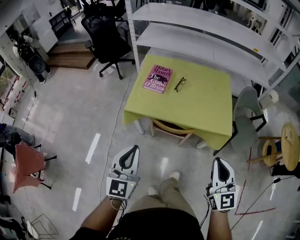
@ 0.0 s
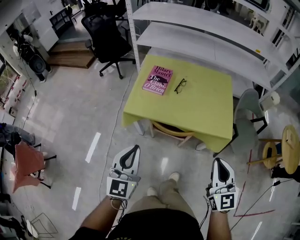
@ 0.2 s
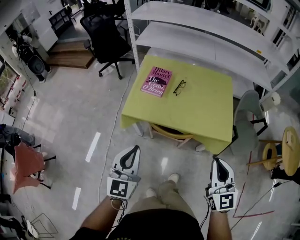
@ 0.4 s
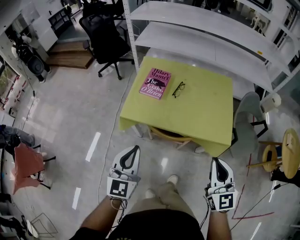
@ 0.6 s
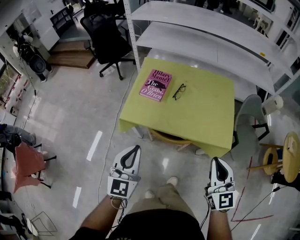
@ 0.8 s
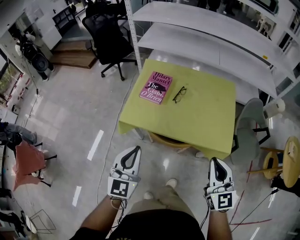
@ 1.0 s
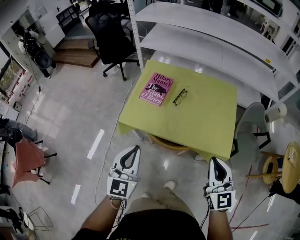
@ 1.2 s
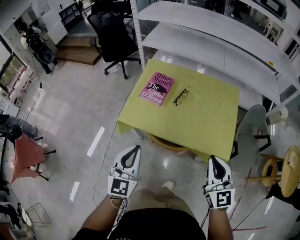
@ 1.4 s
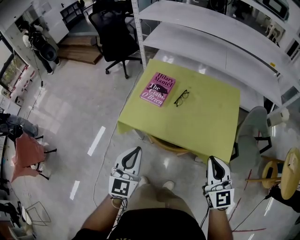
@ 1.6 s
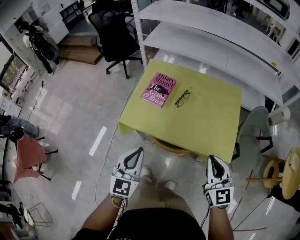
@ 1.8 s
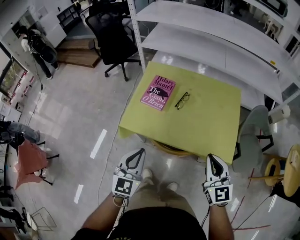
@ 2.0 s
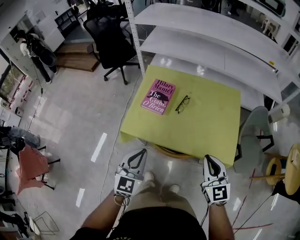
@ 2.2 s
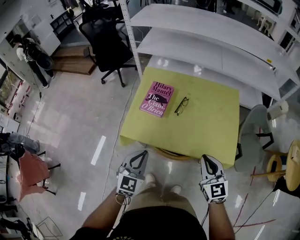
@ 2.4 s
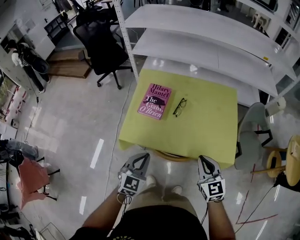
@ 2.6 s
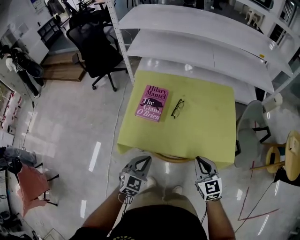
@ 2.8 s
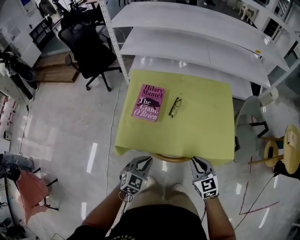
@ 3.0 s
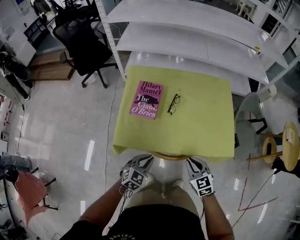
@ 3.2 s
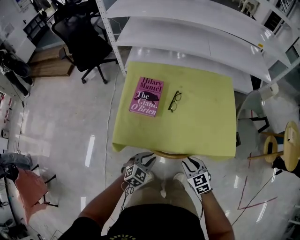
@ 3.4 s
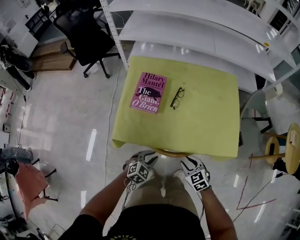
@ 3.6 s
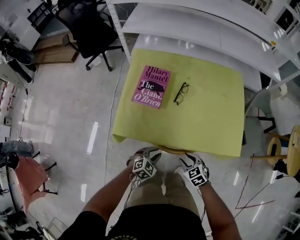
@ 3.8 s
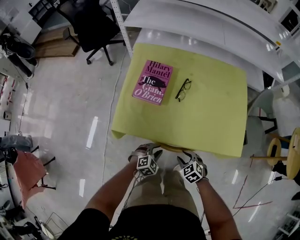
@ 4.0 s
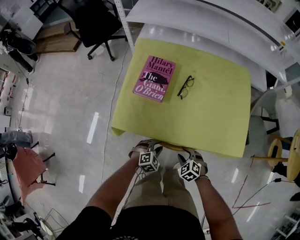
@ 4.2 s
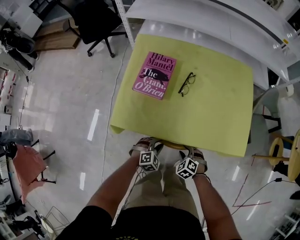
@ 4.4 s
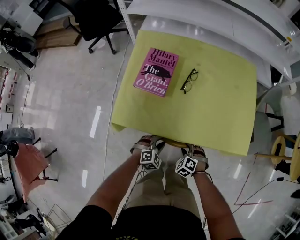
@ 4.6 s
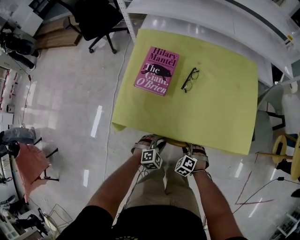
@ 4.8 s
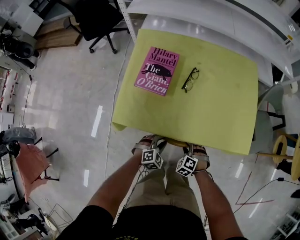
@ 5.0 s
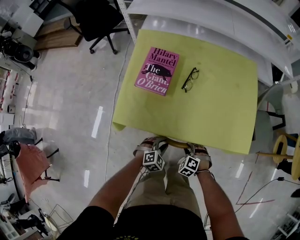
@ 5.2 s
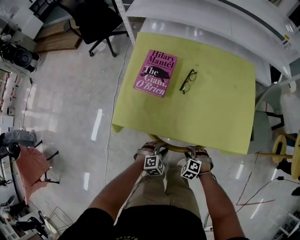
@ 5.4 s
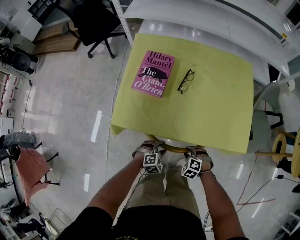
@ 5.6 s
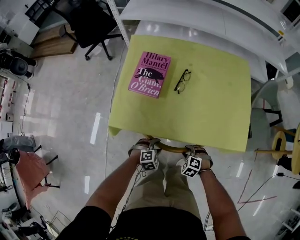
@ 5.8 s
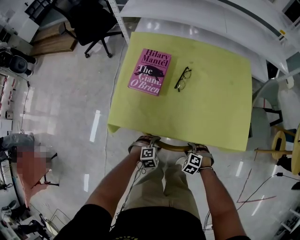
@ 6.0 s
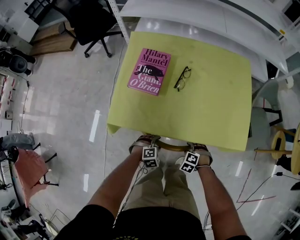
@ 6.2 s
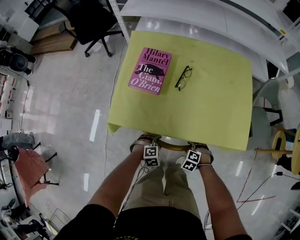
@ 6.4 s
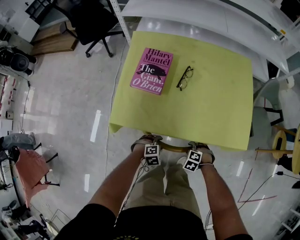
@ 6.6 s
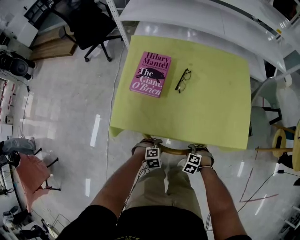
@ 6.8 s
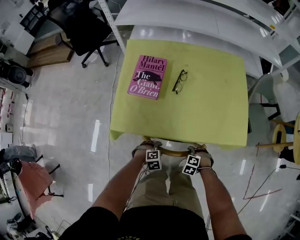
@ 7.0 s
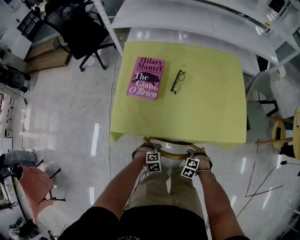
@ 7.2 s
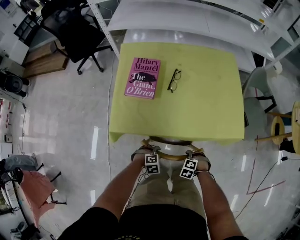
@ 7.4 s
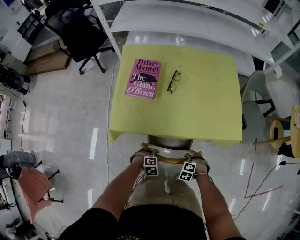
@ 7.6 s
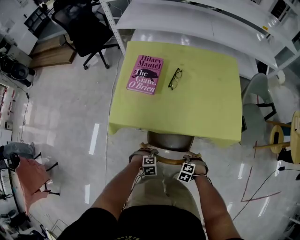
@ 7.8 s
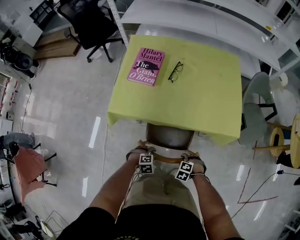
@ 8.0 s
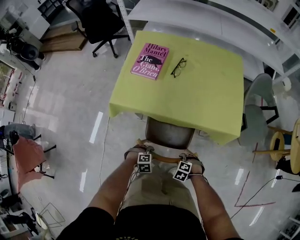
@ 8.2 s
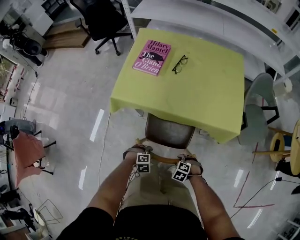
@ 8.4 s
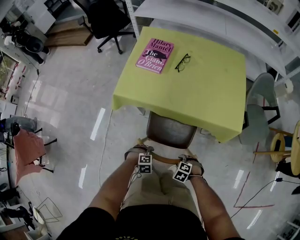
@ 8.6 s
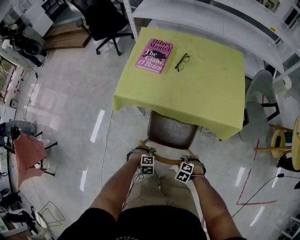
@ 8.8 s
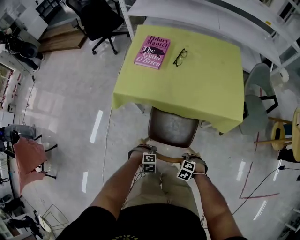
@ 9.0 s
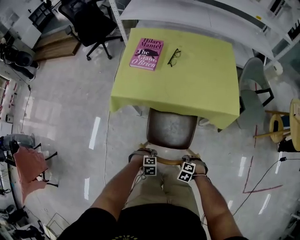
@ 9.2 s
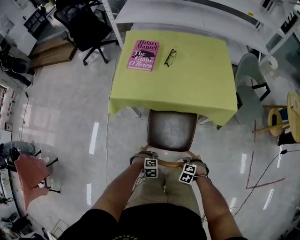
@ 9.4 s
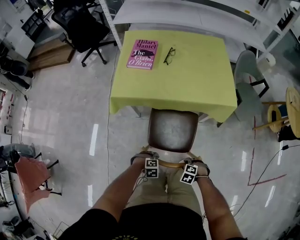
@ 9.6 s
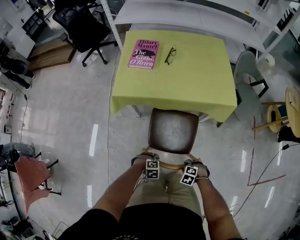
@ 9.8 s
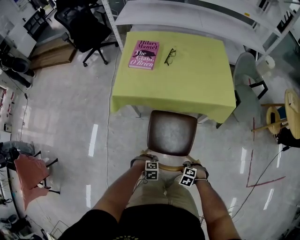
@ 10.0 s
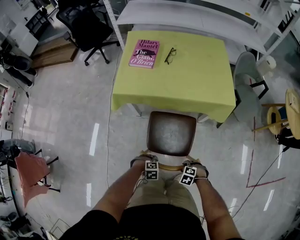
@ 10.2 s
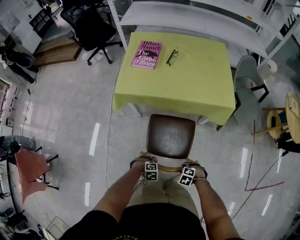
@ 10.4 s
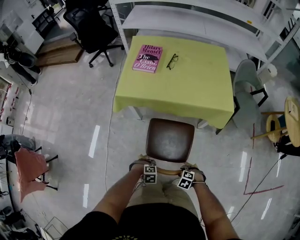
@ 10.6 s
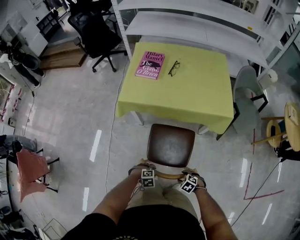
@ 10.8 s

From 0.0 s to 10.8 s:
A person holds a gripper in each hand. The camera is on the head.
From 0.0 s to 1.6 s: The left gripper travels forward and to the right by approximately 15 cm; the right gripper heads forward, covering about 20 cm.
From 1.6 s to 3.0 s: The left gripper goes about 20 cm downward and forward, and turns by some 40 degrees. Meanwhile the right gripper moves downward, to the left and forward, some 20 cm, and turns by approximately 20 degrees.
From 3.0 s to 4.6 s: Both grippers move downward, about 25 cm. The right gripper tilts its fingers approximately 40 degrees downward, and opens its fingers; the left gripper rotates about 30 degrees, and opens its fingers.
From 4.6 s to 6.2 s: The left gripper shifts by about 5 cm, and opens up.
From 6.2 s to 7.8 s: The left gripper changes place by about 10 cm; the right gripper changes place by roughly 10 cm.
From 7.8 s to 9.2 s: The left gripper moves some 15 cm. Meanwhile the right gripper shifts by roughly 15 cm.
From 9.2 s to 10.8 s: The left gripper ends up approximately 10 cm from where it was. Meanwhile the right gripper changes place by about 10 cm.

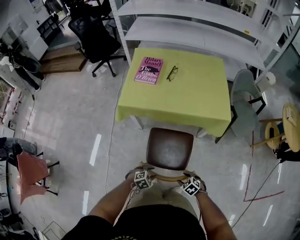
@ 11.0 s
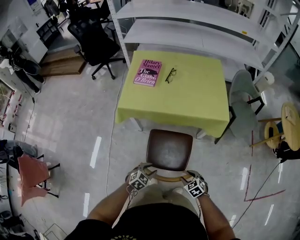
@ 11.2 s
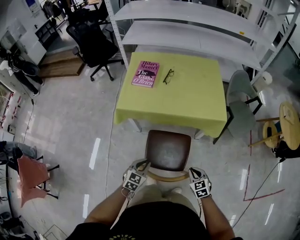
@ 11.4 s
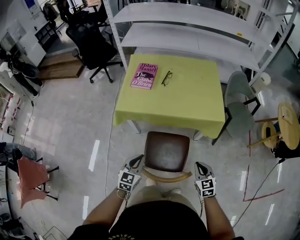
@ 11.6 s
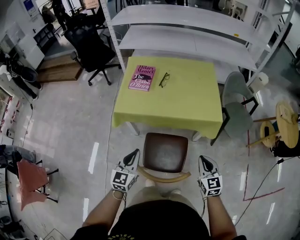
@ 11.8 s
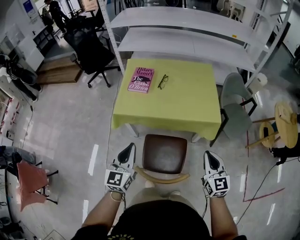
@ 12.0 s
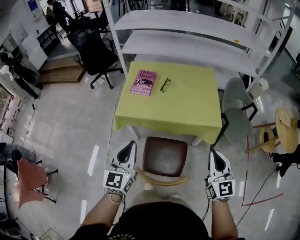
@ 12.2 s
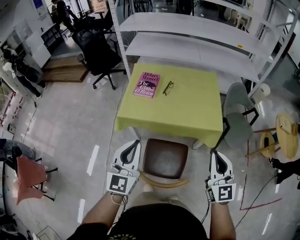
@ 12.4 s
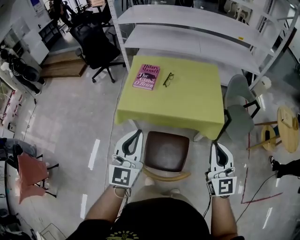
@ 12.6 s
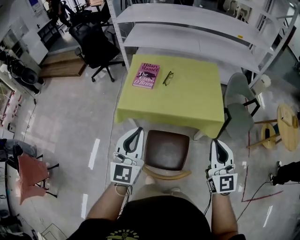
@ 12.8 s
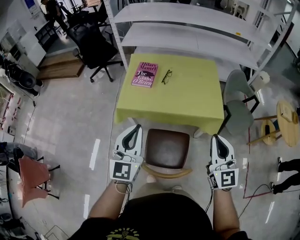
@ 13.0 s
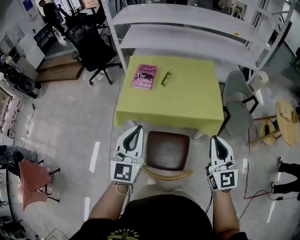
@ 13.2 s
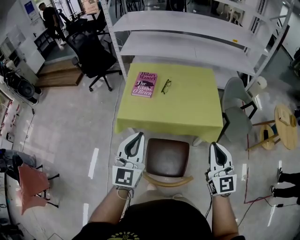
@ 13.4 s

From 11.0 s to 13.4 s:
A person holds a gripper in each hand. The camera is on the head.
From 11.0 s to 12.2 s: The grippers both shift upward by roughly 40 cm. The left gripper points its fingers approximately 60 degrees further upward, and closes. Meanwhile the right gripper angles its fingers upward, by roughly 60 degrees, and closes.
From 12.2 s to 13.4 s: The left gripper ends up about 5 cm from where it was, while the right gripper changes place by about 5 cm.

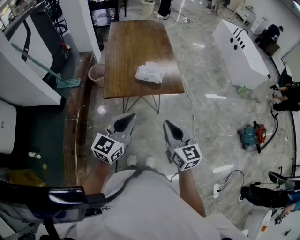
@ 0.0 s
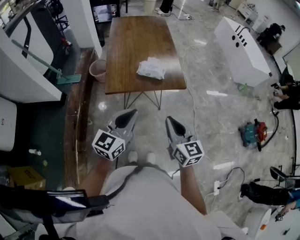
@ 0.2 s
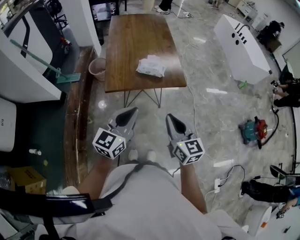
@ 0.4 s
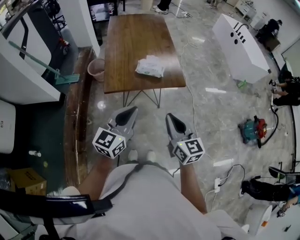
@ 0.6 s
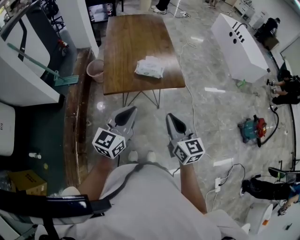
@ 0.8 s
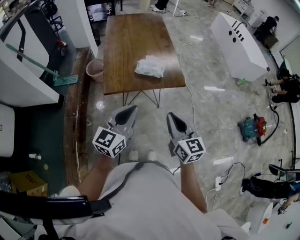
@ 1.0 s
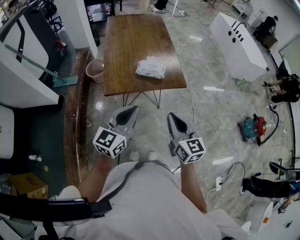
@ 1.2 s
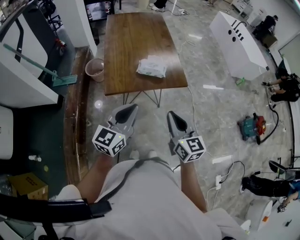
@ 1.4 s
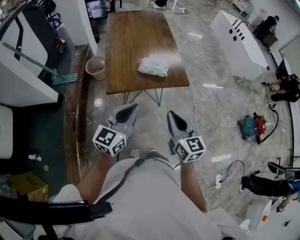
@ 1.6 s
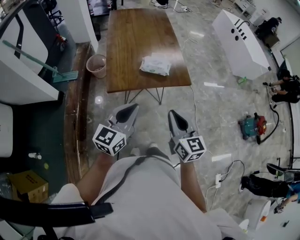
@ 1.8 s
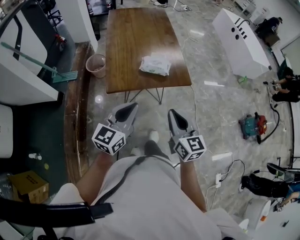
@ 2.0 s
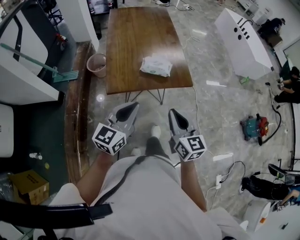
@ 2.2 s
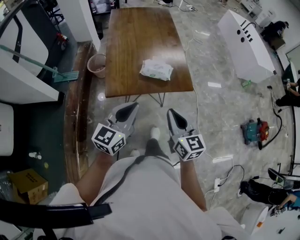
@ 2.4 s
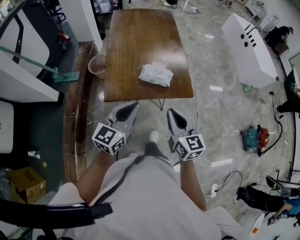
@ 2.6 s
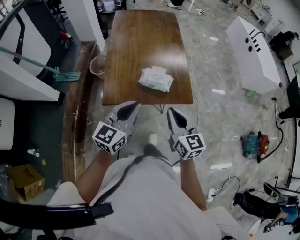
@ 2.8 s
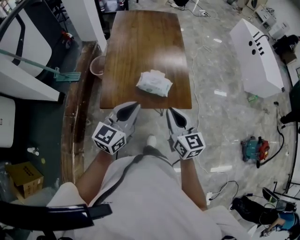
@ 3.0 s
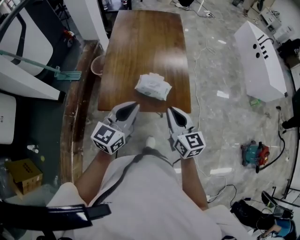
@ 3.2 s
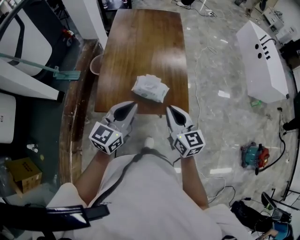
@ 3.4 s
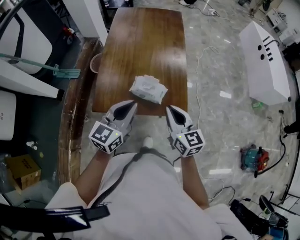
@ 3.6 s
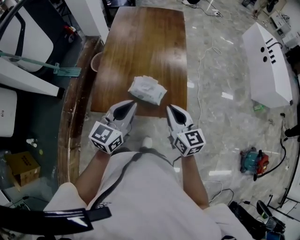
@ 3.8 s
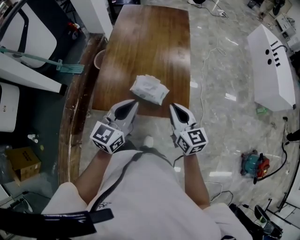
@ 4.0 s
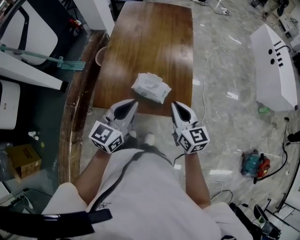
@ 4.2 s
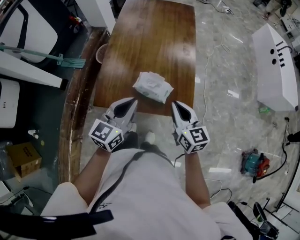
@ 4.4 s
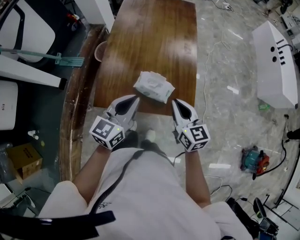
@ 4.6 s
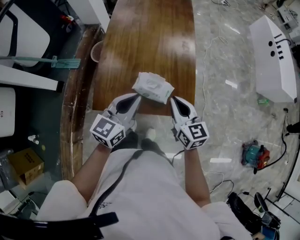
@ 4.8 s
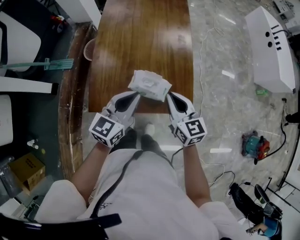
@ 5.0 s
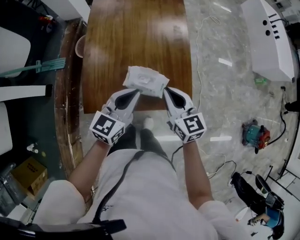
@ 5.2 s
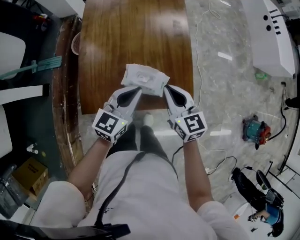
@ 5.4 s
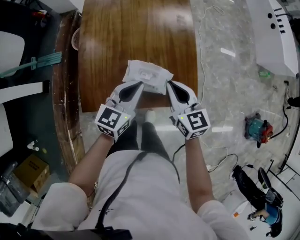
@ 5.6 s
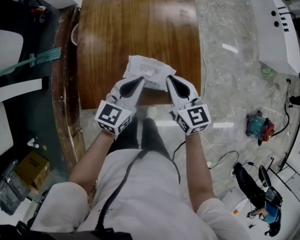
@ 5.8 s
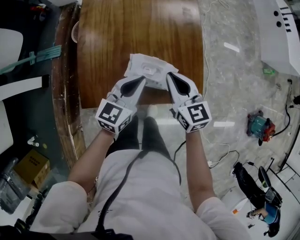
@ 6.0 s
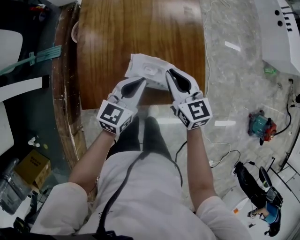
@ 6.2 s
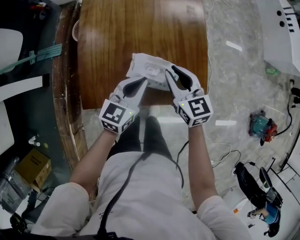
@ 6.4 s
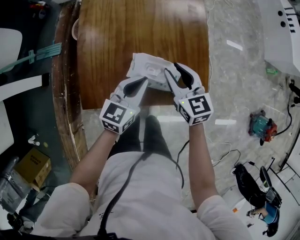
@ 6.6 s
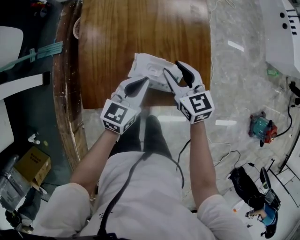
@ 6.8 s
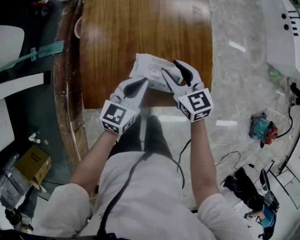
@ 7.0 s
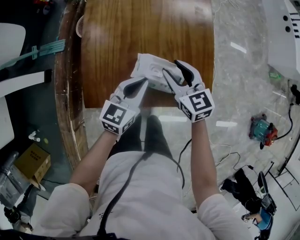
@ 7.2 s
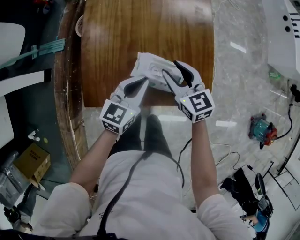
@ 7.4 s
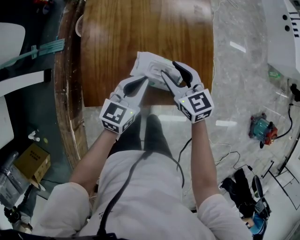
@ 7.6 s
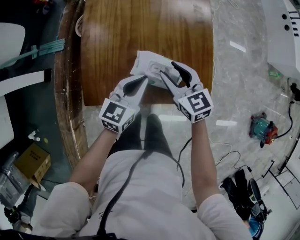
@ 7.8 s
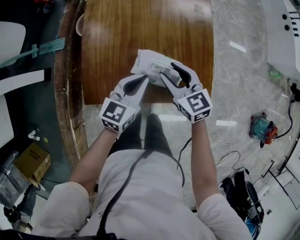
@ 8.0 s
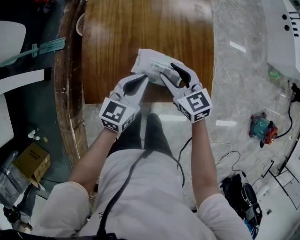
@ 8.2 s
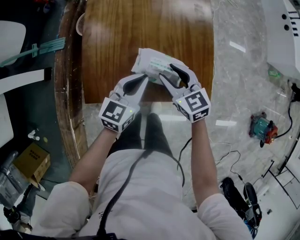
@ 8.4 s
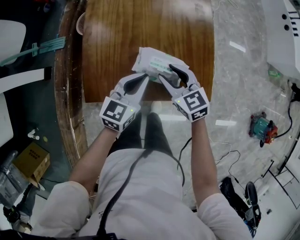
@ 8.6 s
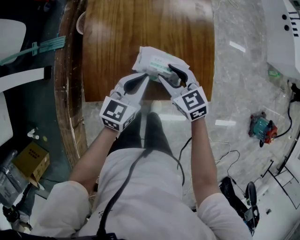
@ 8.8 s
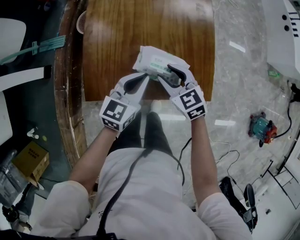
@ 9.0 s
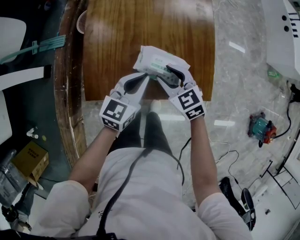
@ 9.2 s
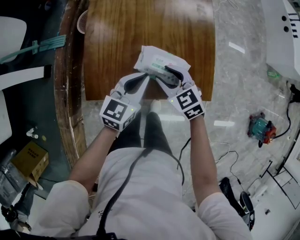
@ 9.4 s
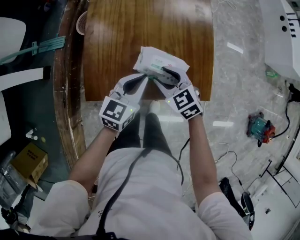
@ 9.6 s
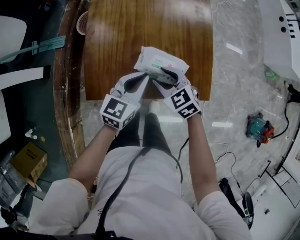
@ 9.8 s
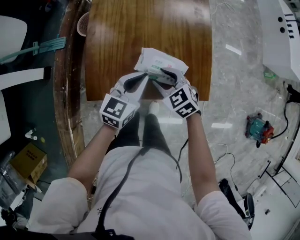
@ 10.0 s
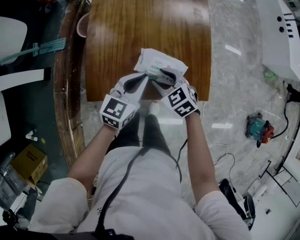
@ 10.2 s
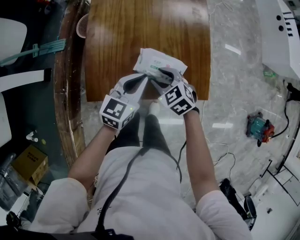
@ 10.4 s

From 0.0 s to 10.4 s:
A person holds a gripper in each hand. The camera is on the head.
From 0.0 s to 1.4 s: The left gripper moves some 5 cm.
From 1.4 s to 3.0 s: The grippers both shift forward by approximately 20 cm.
From 3.0 s to 4.4 s: The left gripper travels forward by about 10 cm. Meanwhile the right gripper is displaced forward, to the right and downward by about 15 cm.
From 4.4 s to 6.0 s: The two grippers go approximately 15 cm downward and forward.
From 6.0 s to 7.4 s: The right gripper moves about 5 cm, and opens.
From 7.4 s to 9.0 s: The right gripper shifts by roughly 5 cm.
From 9.0 s to 10.4 s: The grippers make only small movements.
